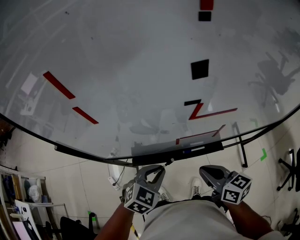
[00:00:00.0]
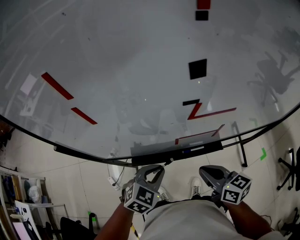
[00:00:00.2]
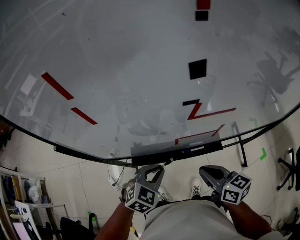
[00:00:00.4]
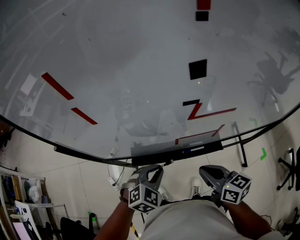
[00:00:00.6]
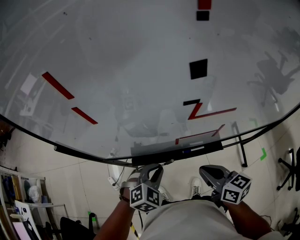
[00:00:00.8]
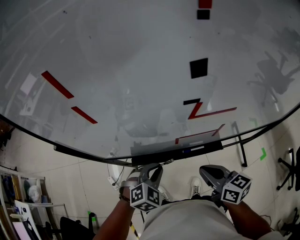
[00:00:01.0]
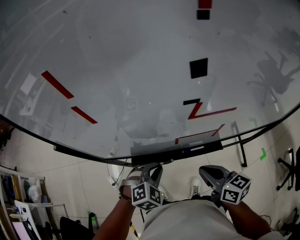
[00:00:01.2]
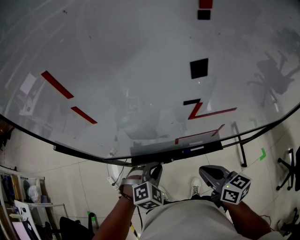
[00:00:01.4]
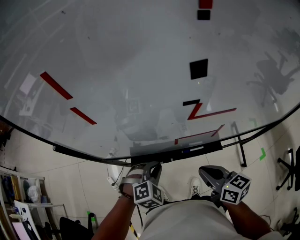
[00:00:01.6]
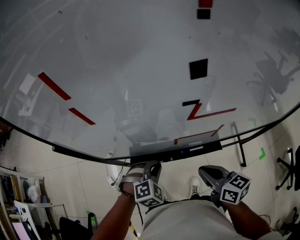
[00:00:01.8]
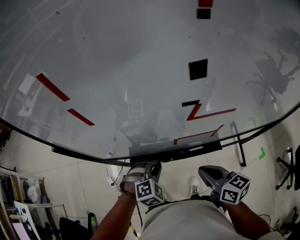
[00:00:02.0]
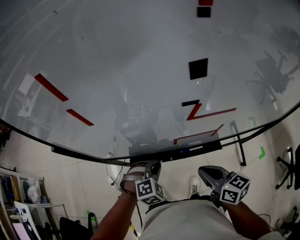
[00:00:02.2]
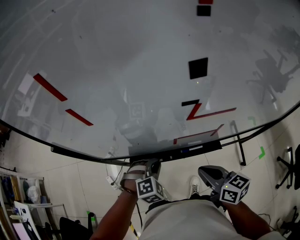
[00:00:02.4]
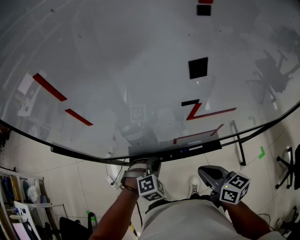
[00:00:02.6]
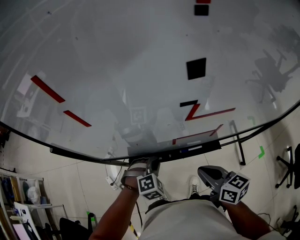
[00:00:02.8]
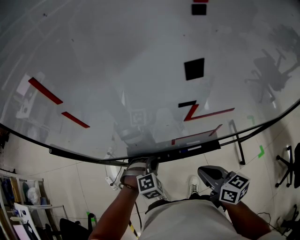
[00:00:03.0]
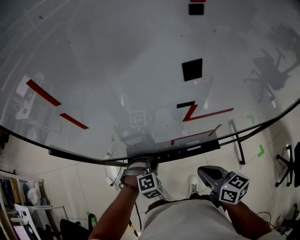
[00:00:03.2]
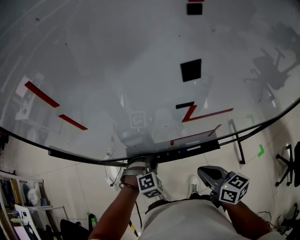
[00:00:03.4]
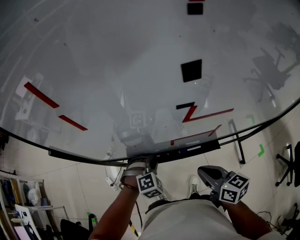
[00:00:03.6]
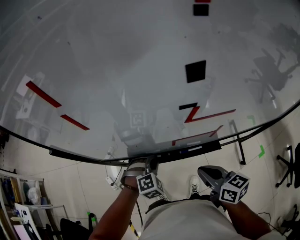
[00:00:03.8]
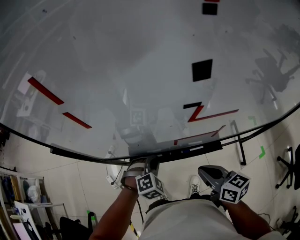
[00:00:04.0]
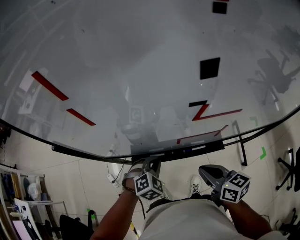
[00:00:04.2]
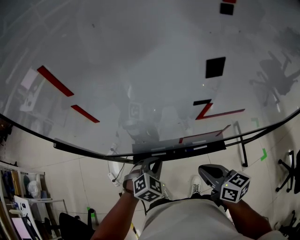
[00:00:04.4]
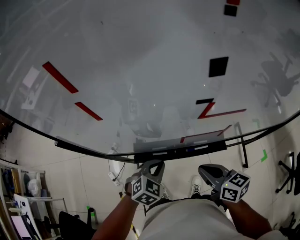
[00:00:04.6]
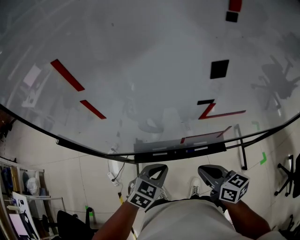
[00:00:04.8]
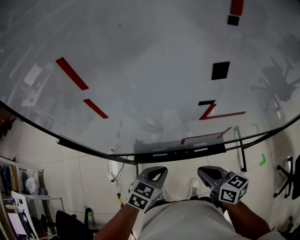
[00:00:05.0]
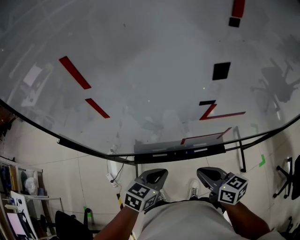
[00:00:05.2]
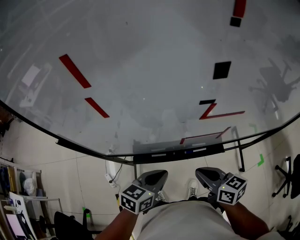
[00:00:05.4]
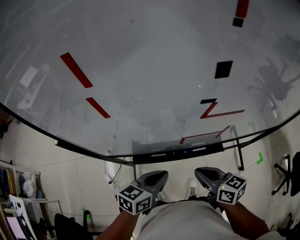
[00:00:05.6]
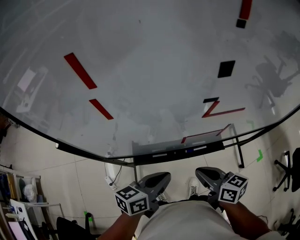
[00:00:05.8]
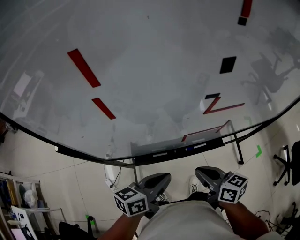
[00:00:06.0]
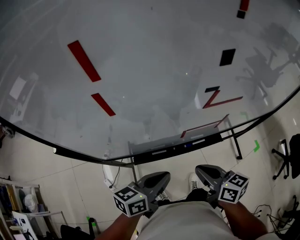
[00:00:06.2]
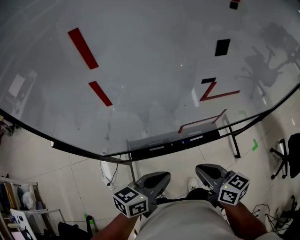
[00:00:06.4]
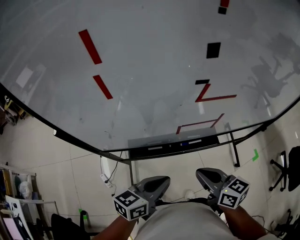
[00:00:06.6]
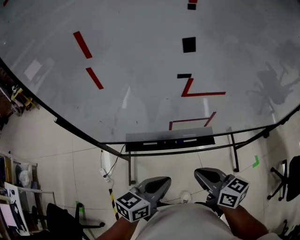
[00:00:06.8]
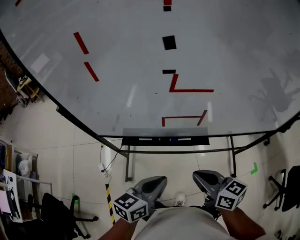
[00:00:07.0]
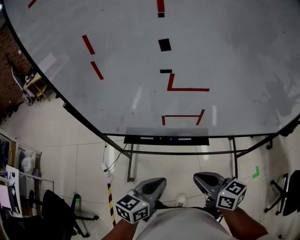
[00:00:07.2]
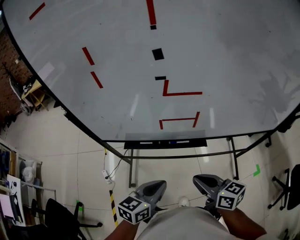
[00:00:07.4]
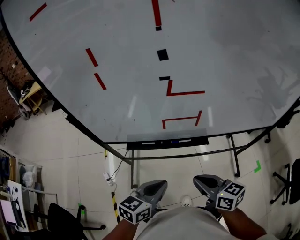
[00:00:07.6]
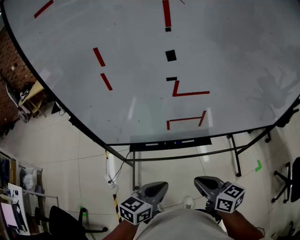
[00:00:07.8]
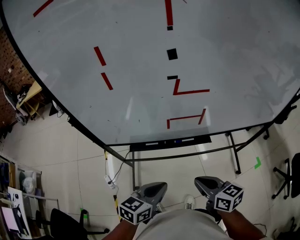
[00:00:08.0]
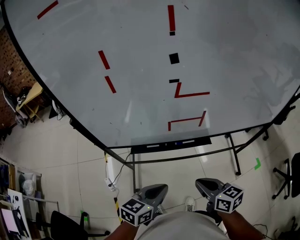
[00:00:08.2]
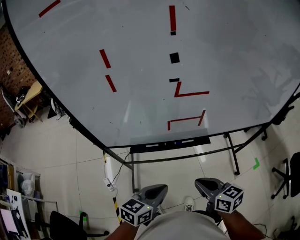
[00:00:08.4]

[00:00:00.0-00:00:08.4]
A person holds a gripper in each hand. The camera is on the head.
00:00:00.0 to 00:00:01.4: The left gripper changes its angle by approximately 30 degrees.
00:00:01.4 to 00:00:02.8: The left gripper heads downward, covering roughly 5 cm.
00:00:02.8 to 00:00:04.2: The grippers stay close to where they were, moving slightly.
00:00:04.2 to 00:00:05.6: The left gripper moves upward and backward, roughly 10 cm, and twists about 50 degrees counterclockwise, seen from behind.
00:00:05.6 to 00:00:07.0: The right gripper moves to the right and backward, about 10 cm, while the left gripper travels backward and to the right by some 10 cm.
00:00:07.0 to 00:00:08.4: The right gripper is displaced backward by some 5 cm, while the left gripper changes place by about 5 cm.

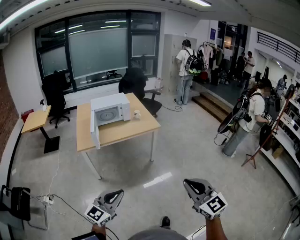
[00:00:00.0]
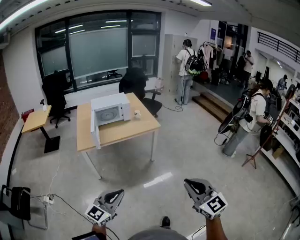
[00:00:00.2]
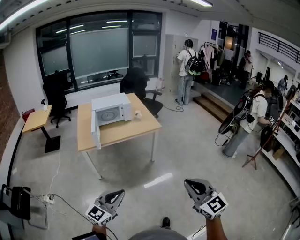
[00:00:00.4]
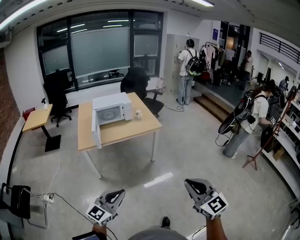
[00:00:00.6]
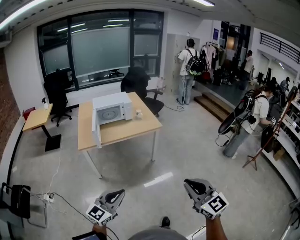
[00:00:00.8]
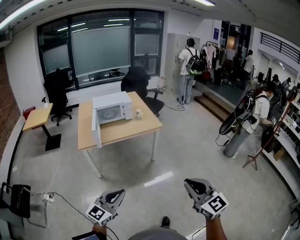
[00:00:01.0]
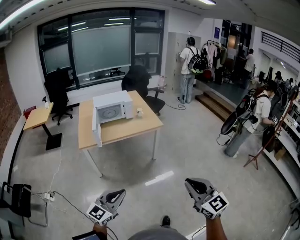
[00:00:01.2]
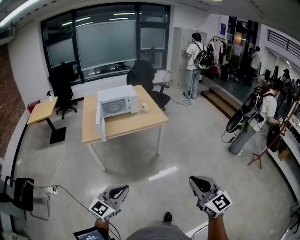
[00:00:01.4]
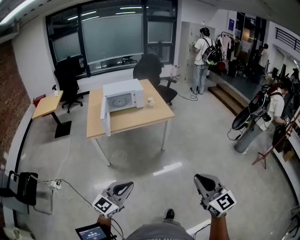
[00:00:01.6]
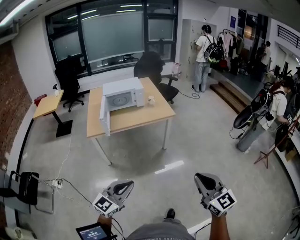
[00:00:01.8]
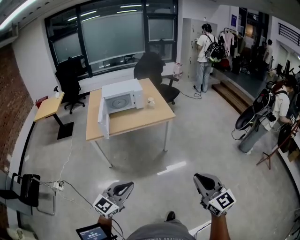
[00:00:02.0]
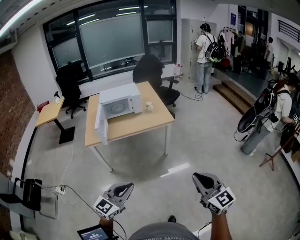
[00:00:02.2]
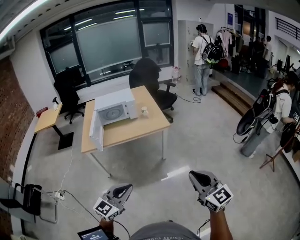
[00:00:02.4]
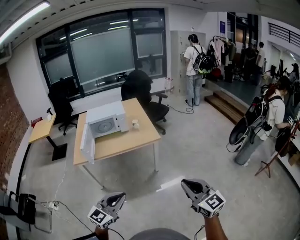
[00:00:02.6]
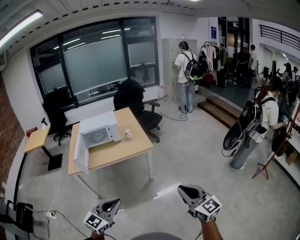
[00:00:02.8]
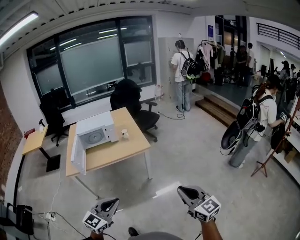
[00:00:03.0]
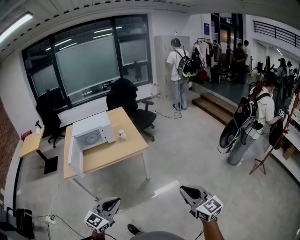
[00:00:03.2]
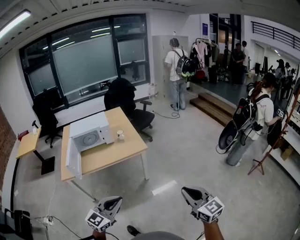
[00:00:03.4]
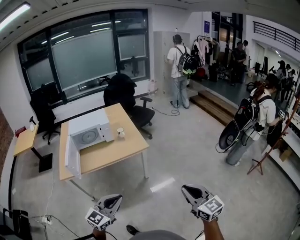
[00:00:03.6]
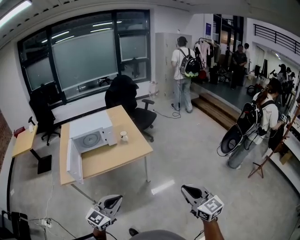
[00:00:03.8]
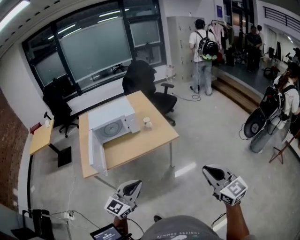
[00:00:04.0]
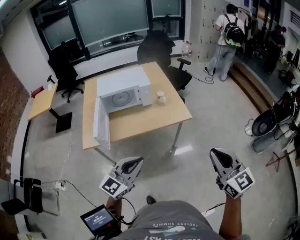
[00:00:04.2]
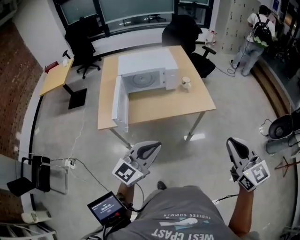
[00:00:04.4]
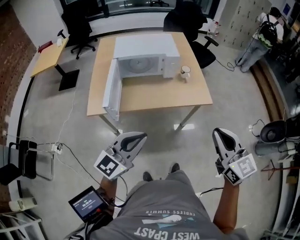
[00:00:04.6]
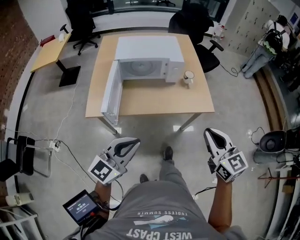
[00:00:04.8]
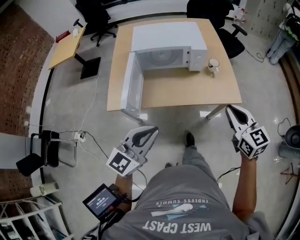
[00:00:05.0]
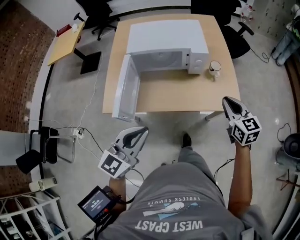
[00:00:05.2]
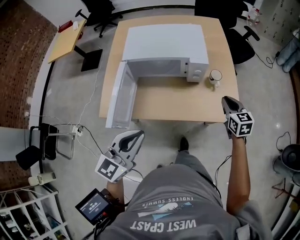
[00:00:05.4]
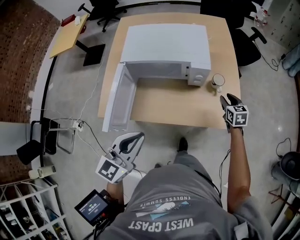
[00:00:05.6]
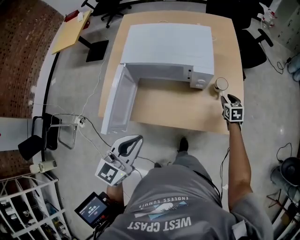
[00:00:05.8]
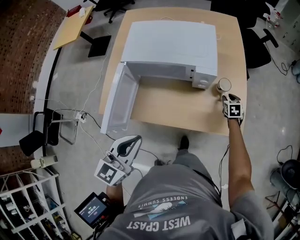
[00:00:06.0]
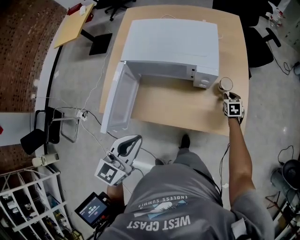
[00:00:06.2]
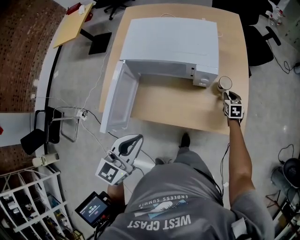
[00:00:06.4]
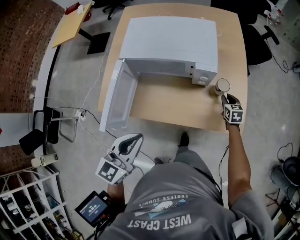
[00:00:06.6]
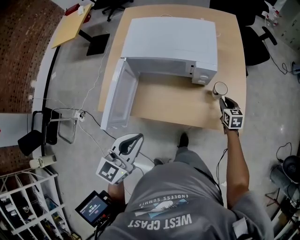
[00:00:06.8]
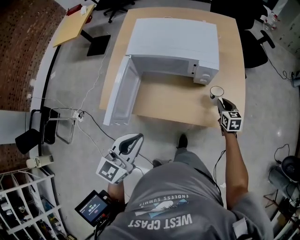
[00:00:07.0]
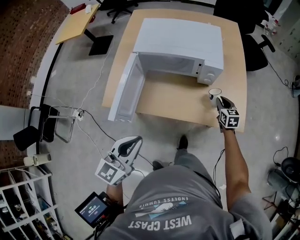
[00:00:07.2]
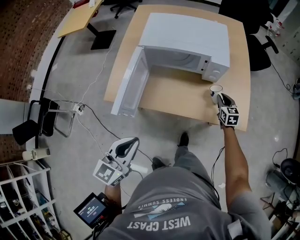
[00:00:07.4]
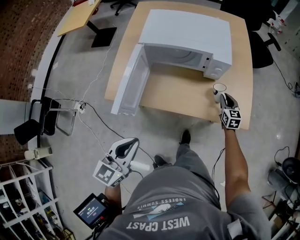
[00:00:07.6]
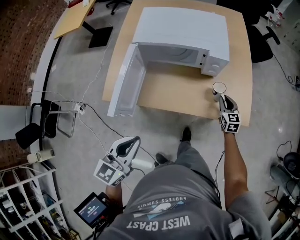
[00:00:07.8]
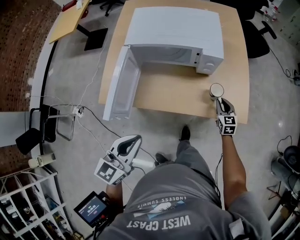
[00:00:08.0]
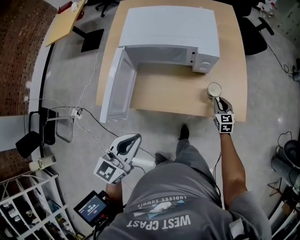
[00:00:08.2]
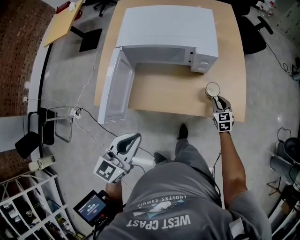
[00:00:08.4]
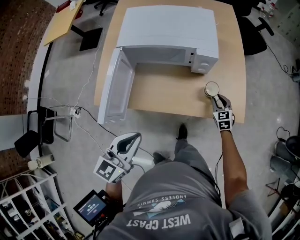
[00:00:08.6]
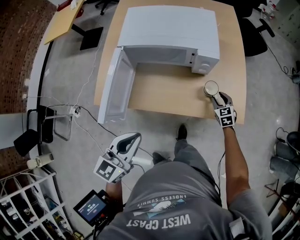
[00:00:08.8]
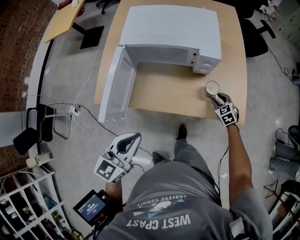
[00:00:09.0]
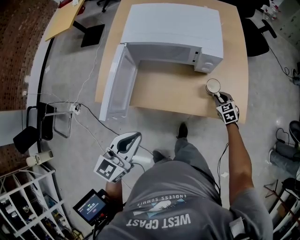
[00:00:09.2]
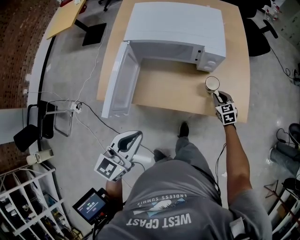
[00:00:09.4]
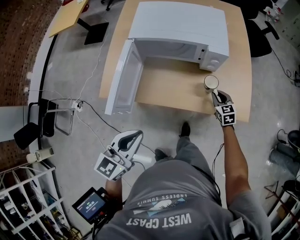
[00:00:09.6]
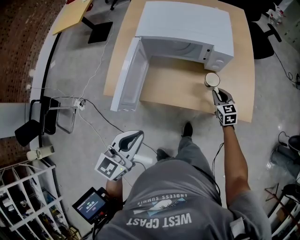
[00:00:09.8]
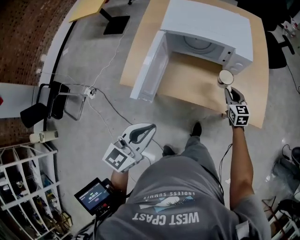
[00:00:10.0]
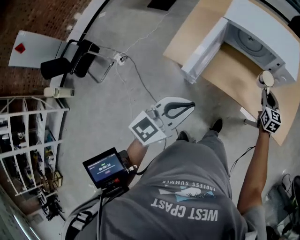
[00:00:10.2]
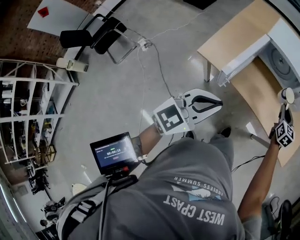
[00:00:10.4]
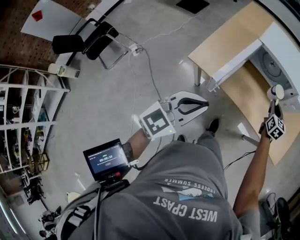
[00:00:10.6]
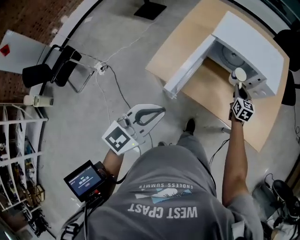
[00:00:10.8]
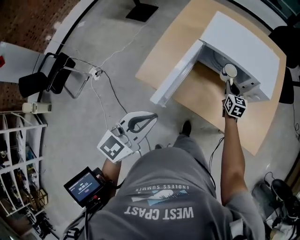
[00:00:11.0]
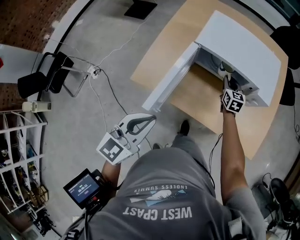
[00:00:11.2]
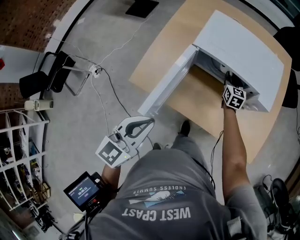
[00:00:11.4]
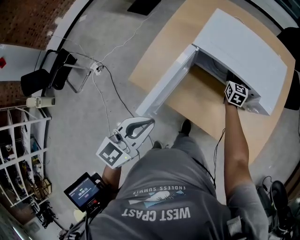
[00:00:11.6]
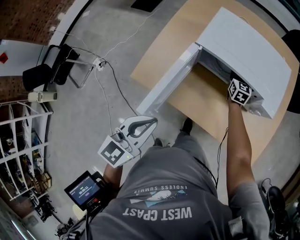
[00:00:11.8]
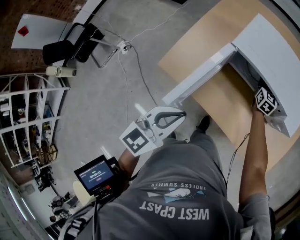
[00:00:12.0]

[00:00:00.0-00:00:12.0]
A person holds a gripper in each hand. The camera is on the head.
00:00:00.0 to 00:00:01.6: The right gripper moves some 5 cm.
00:00:01.6 to 00:00:03.0: The two grippers go about 30 cm forward and to the right.
00:00:03.0 to 00:00:04.4: The left gripper is displaced forward and to the left by roughly 40 cm. The right gripper goes about 40 cm to the left and forward.
00:00:04.4 to 00:00:06.0: The right gripper travels forward and downward by roughly 80 cm, tips its fingers downward by roughly 40 degrees, and opens up, while the left gripper is displaced forward by approximately 35 cm, and turns by approximately 30 degrees.
00:00:06.0 to 00:00:07.6: The grippers both shift backward and to the left by approximately 15 cm. The right gripper swivels roughly 20 degrees.
00:00:07.6 to 00:00:09.0: The left gripper goes about 5 cm forward. The right gripper travels downward by some 5 cm, and changes its angle by about 30 degrees.
00:00:09.0 to 00:00:10.4: The left gripper travels to the left and backward by about 20 cm, while the right gripper travels to the left by about 20 cm, and turns by approximately 30 degrees.
00:00:10.4 to 00:00:12.0: The left gripper shifts approximately 20 cm forward, and swivels roughly 20 degrees, while the right gripper heads forward, covering about 35 cm.

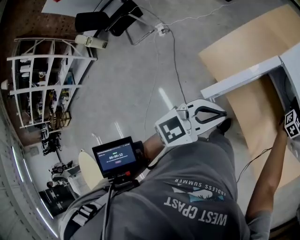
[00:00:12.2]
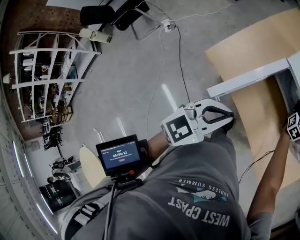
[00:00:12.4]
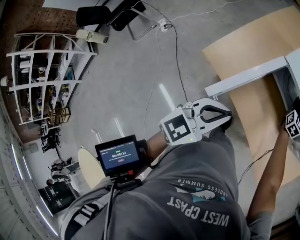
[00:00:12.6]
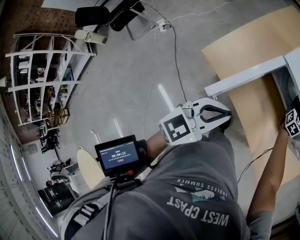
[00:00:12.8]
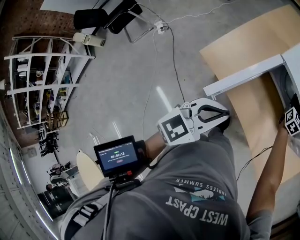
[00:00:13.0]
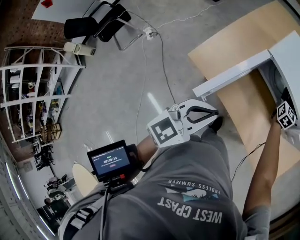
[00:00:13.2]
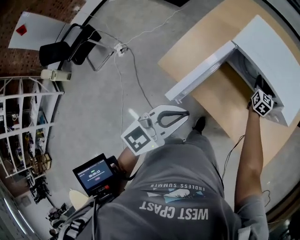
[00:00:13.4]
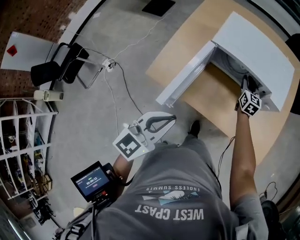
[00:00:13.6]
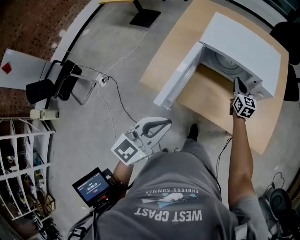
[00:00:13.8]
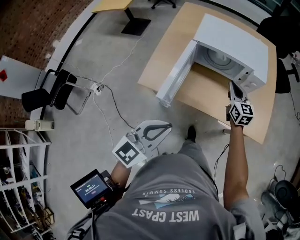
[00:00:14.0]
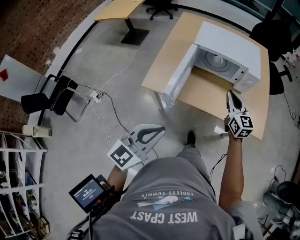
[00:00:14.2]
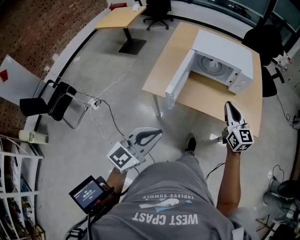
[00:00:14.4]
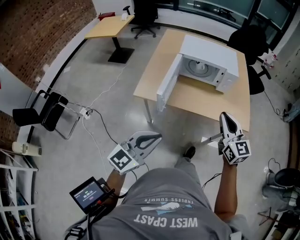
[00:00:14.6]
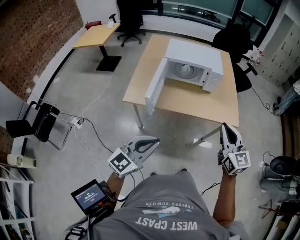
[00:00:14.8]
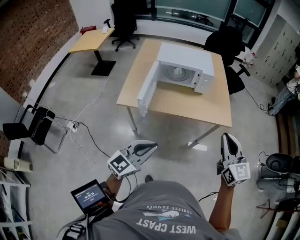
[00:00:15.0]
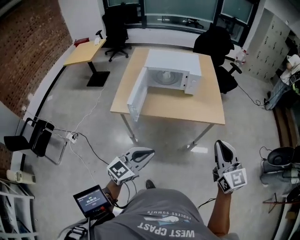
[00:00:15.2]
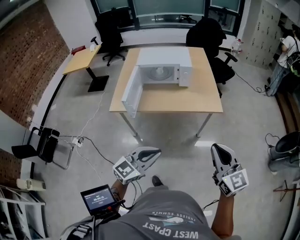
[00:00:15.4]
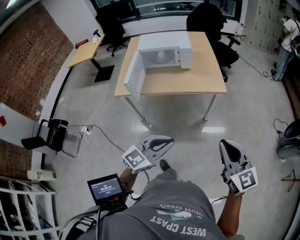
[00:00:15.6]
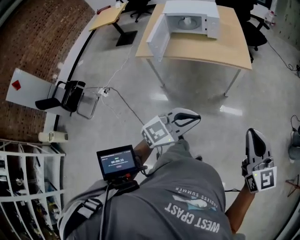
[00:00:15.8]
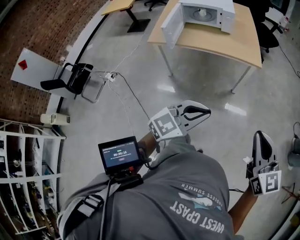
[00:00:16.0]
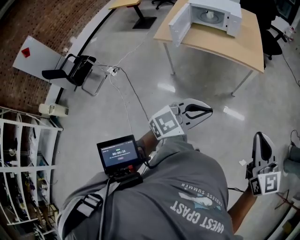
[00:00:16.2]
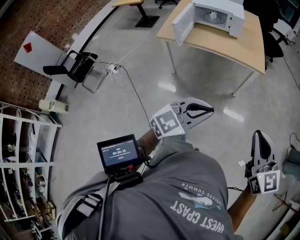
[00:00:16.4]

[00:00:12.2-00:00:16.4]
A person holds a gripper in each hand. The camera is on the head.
00:00:12.2 to 00:00:13.6: Both grippers travel together backward, about 15 cm.
00:00:13.6 to 00:00:15.0: The left gripper shifts approximately 35 cm backward, and changes its angle by about 30 degrees; the right gripper is displaced backward and upward by roughly 70 cm, and swivels about 20 degrees.
00:00:15.0 to 00:00:16.4: The left gripper travels to the right and backward by about 35 cm. The right gripper heads backward and to the right, covering some 35 cm.
